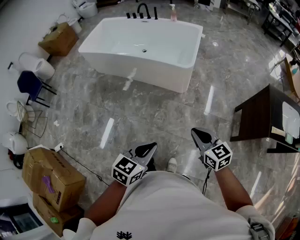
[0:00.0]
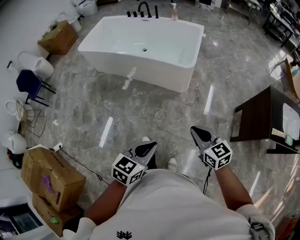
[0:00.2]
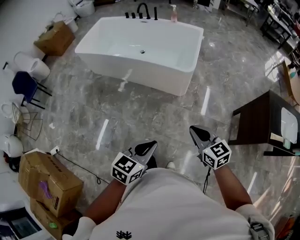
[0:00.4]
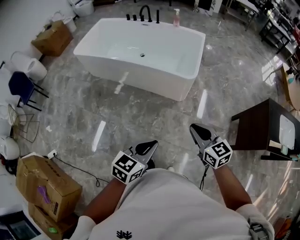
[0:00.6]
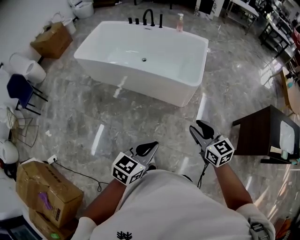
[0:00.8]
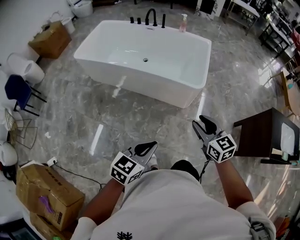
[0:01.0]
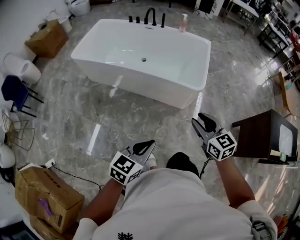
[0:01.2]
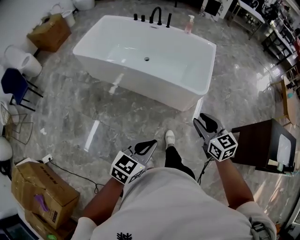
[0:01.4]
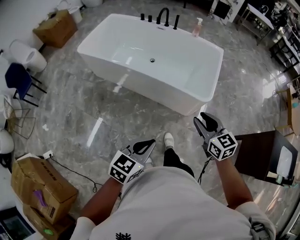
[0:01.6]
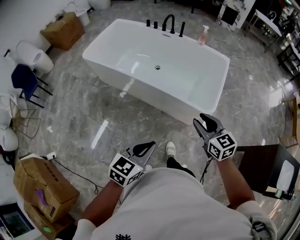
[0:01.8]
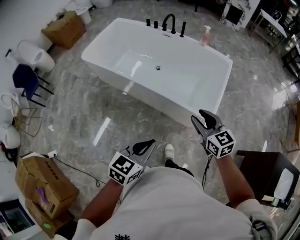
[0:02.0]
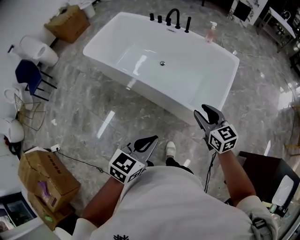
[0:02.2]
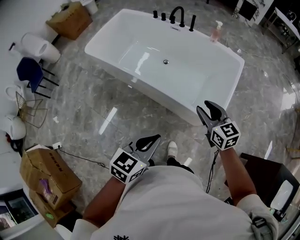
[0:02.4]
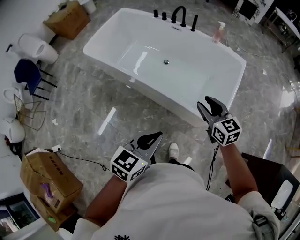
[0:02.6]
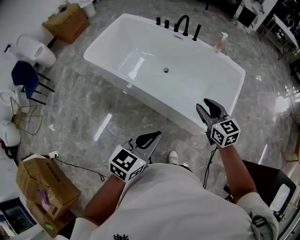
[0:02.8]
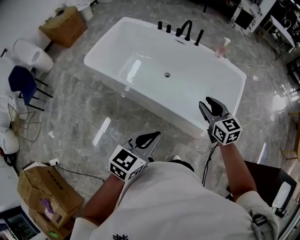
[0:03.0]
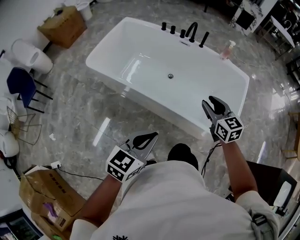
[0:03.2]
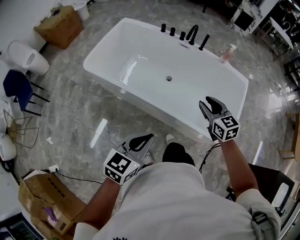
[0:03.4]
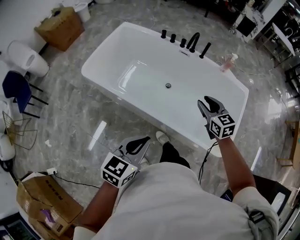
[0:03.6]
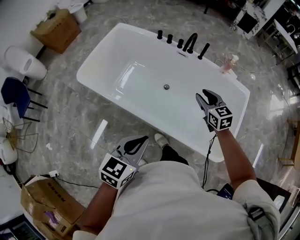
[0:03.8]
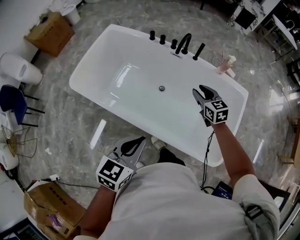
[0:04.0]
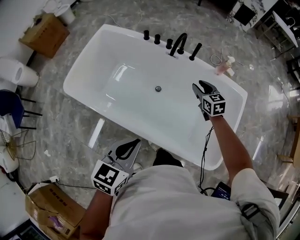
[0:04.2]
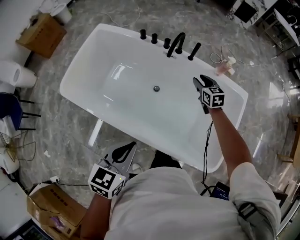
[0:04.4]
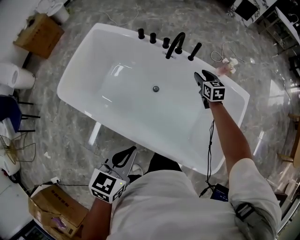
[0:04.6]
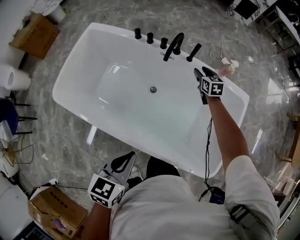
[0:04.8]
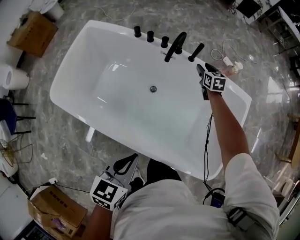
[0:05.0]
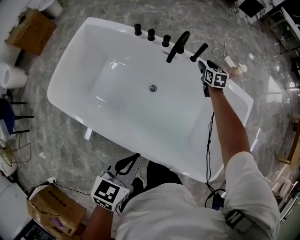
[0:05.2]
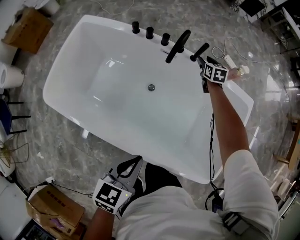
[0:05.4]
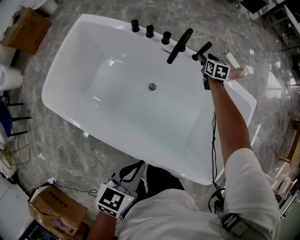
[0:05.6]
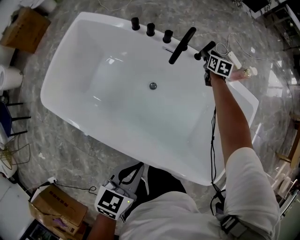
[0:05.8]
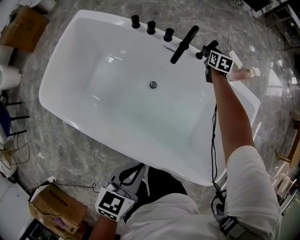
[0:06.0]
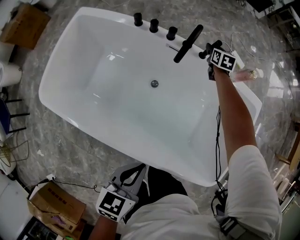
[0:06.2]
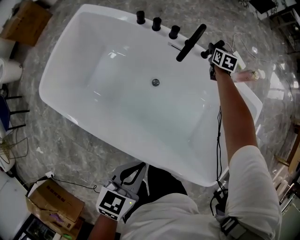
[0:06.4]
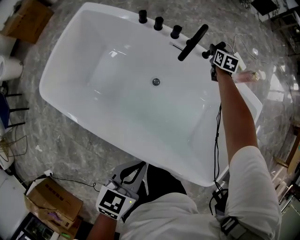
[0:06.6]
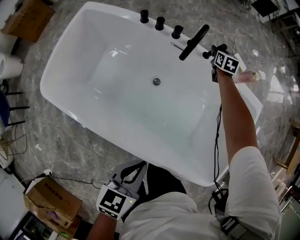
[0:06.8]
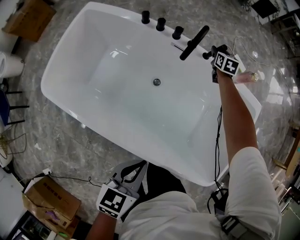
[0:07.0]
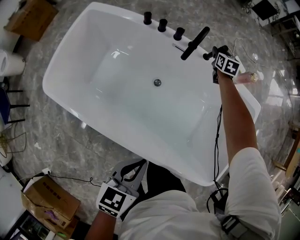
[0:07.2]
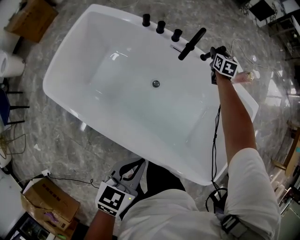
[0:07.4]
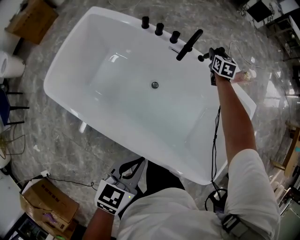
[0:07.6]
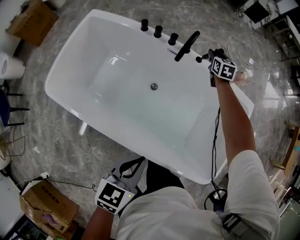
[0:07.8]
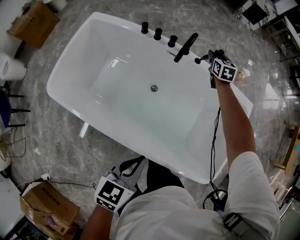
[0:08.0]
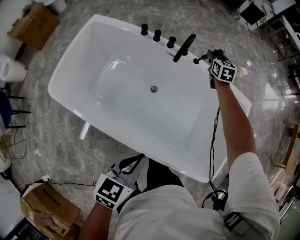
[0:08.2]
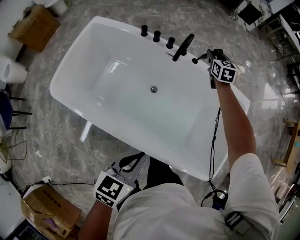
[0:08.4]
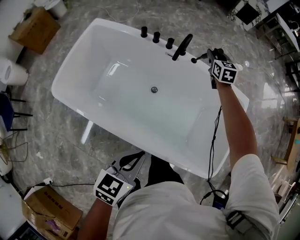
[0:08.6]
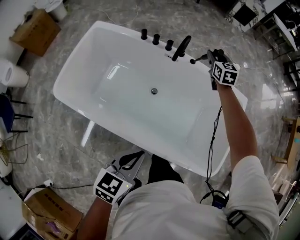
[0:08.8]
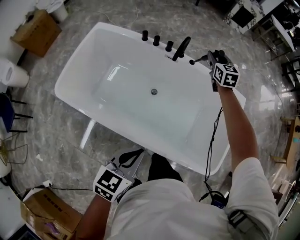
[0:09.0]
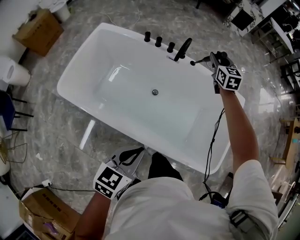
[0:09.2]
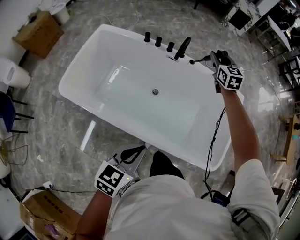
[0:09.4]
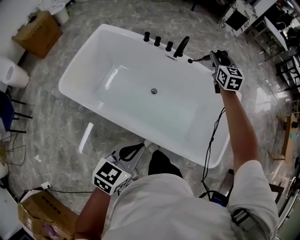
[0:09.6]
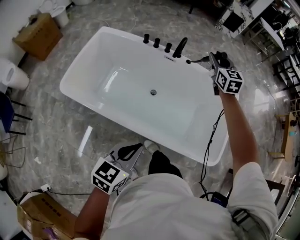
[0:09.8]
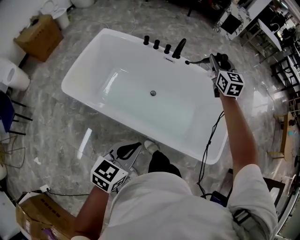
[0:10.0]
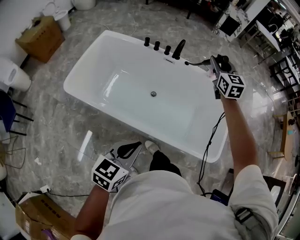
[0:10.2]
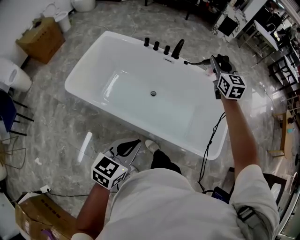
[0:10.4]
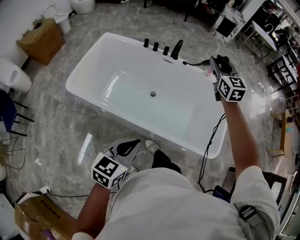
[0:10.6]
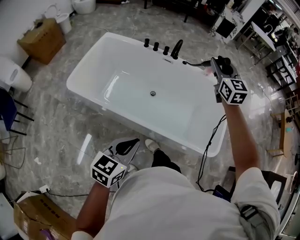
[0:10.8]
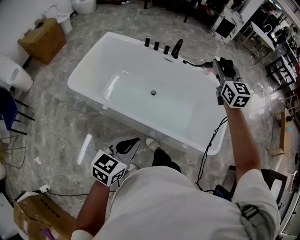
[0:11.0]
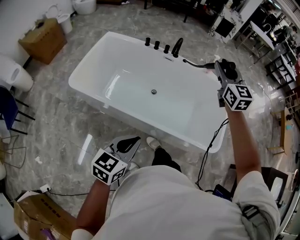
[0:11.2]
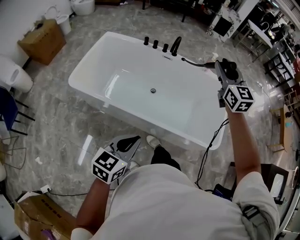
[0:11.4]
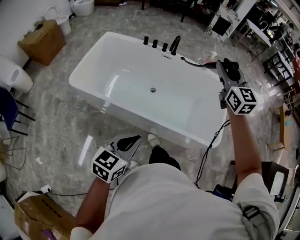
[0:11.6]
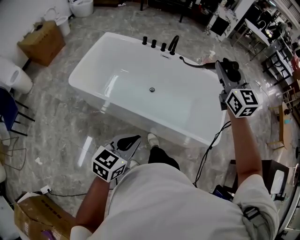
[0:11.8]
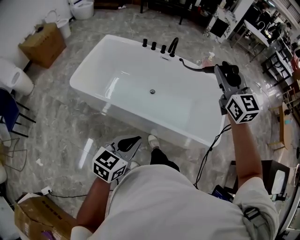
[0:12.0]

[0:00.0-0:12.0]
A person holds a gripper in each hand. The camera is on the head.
0:00.0 to 0:01.6: The two grippers go roughly 40 cm forward and to the left. The right gripper opens its fingers.
0:01.6 to 0:03.0: The grippers both shift forward by roughly 35 cm.
0:03.0 to 0:04.4: The two grippers go roughly 40 cm forward.
0:04.4 to 0:06.0: The right gripper travels forward and downward by roughly 35 cm, and turns by approximately 20 degrees. The left gripper travels downward and forward by some 15 cm.
0:06.0 to 0:07.6: The right gripper goes about 10 cm upward.
0:07.6 to 0:09.0: The left gripper heads backward and upward, covering roughly 10 cm, while the right gripper travels upward and backward by about 25 cm.
0:09.0 to 0:10.4: The right gripper is displaced backward and upward by some 30 cm; the left gripper moves backward, some 15 cm.
0:10.4 to 0:12.0: The right gripper moves backward and upward, roughly 30 cm. Meanwhile the left gripper moves backward, roughly 10 cm.

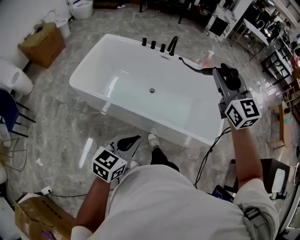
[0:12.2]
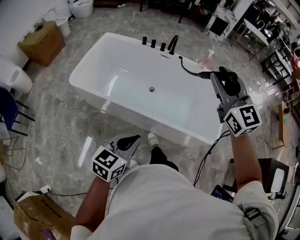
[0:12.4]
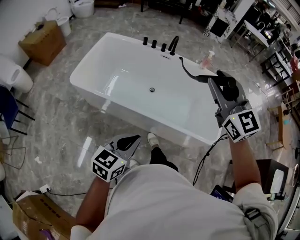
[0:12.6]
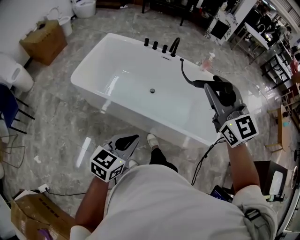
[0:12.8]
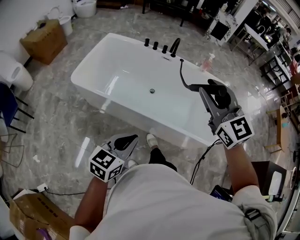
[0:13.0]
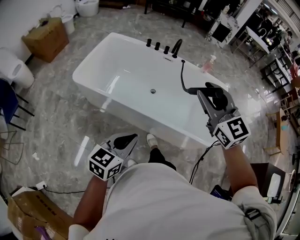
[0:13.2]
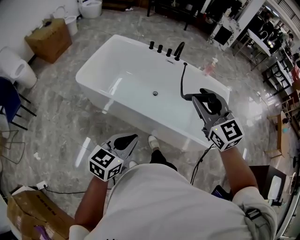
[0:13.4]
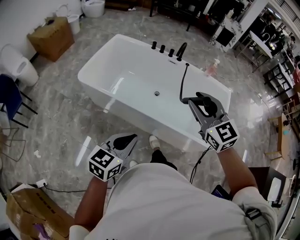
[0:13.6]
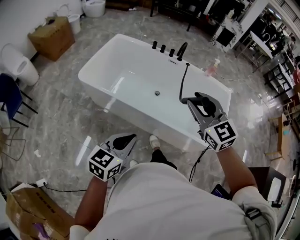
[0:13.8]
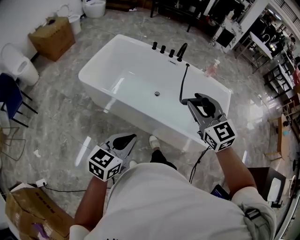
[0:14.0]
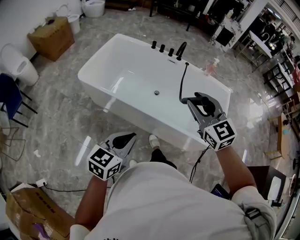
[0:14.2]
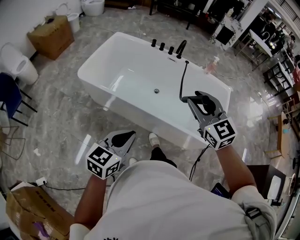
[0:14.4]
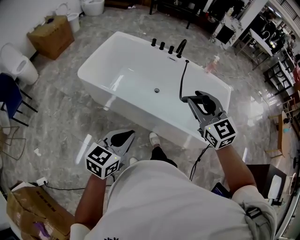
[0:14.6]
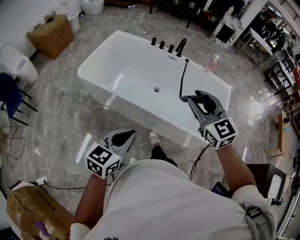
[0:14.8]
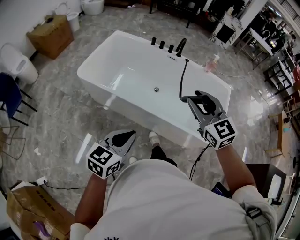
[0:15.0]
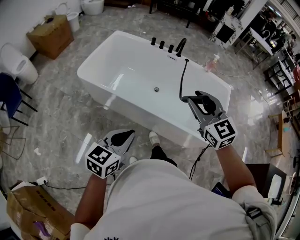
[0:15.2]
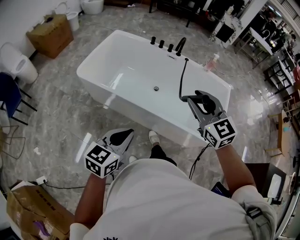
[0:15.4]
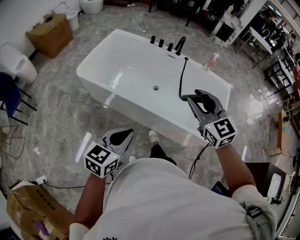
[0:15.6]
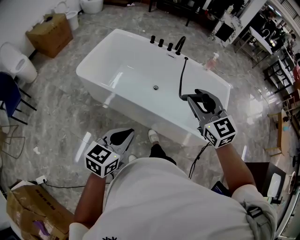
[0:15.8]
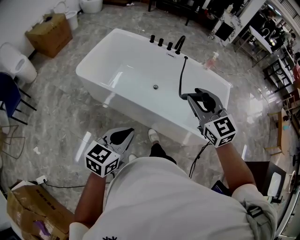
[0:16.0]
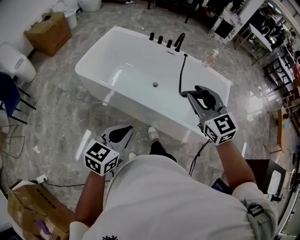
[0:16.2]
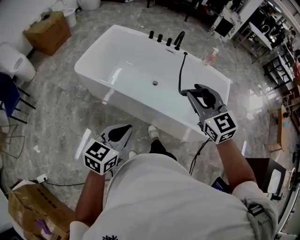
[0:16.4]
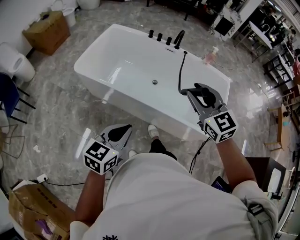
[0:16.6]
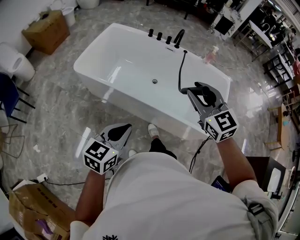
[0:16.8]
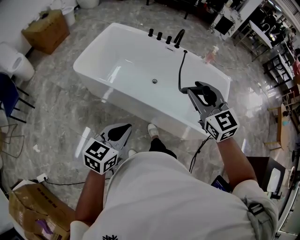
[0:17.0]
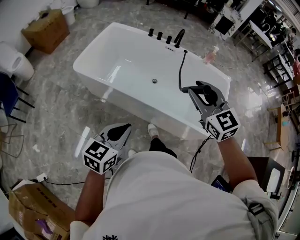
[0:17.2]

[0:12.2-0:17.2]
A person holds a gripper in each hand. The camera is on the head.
0:12.2 to 0:13.8: The left gripper moves approximately 5 cm. Meanwhile the right gripper travels backward, to the left and downward by roughly 20 cm.
0:13.8 to 0:17.2: The grippers move only a little.

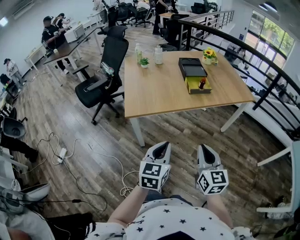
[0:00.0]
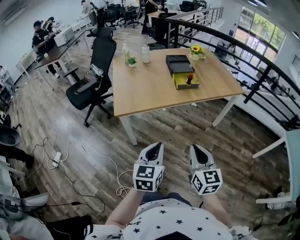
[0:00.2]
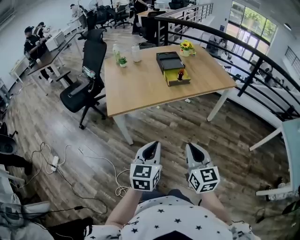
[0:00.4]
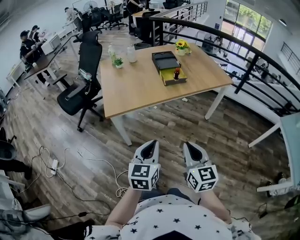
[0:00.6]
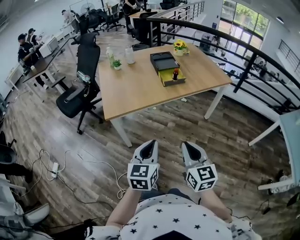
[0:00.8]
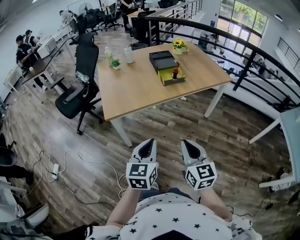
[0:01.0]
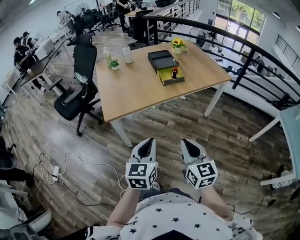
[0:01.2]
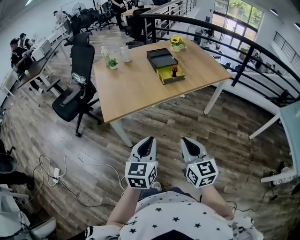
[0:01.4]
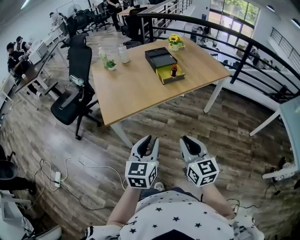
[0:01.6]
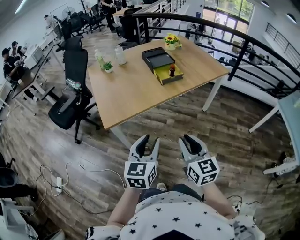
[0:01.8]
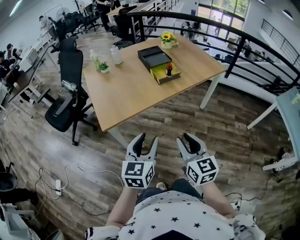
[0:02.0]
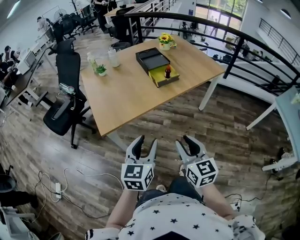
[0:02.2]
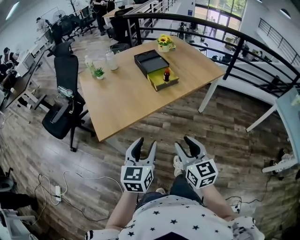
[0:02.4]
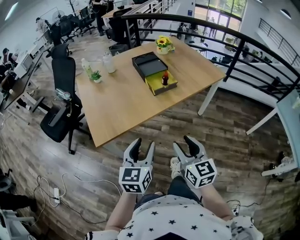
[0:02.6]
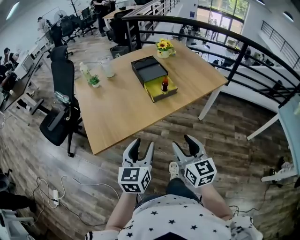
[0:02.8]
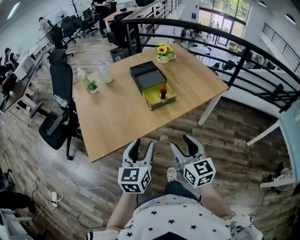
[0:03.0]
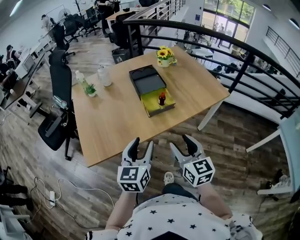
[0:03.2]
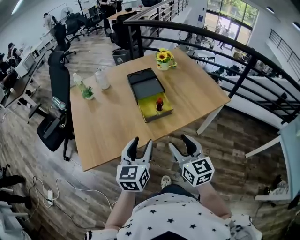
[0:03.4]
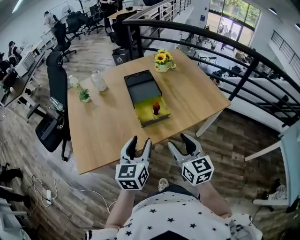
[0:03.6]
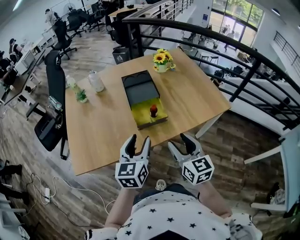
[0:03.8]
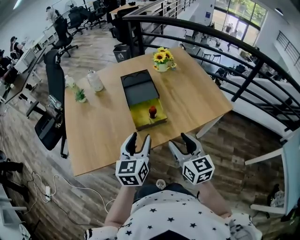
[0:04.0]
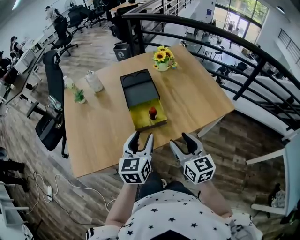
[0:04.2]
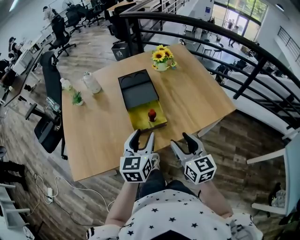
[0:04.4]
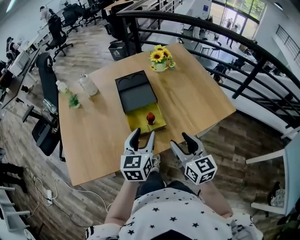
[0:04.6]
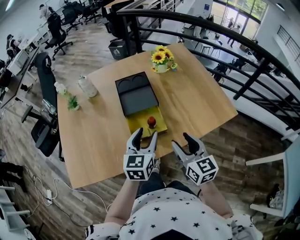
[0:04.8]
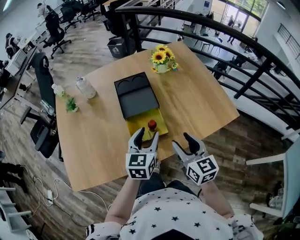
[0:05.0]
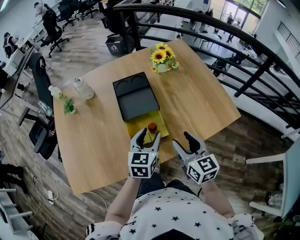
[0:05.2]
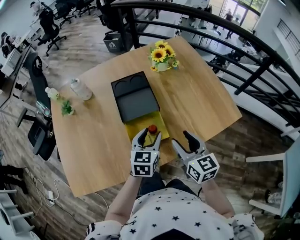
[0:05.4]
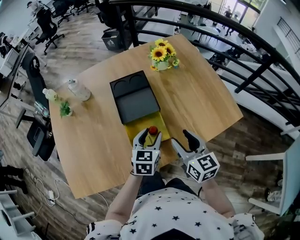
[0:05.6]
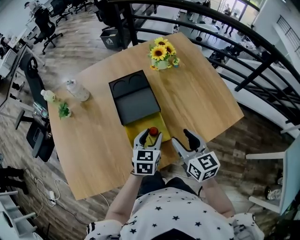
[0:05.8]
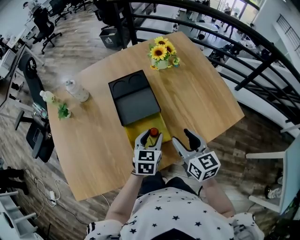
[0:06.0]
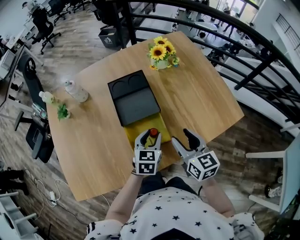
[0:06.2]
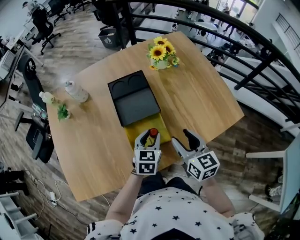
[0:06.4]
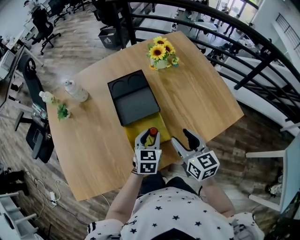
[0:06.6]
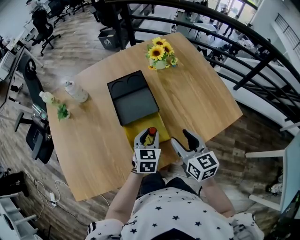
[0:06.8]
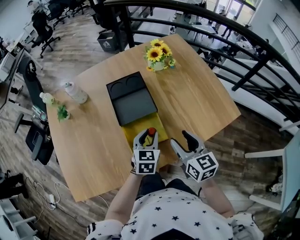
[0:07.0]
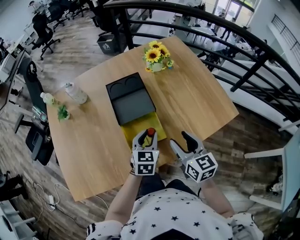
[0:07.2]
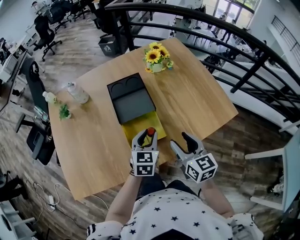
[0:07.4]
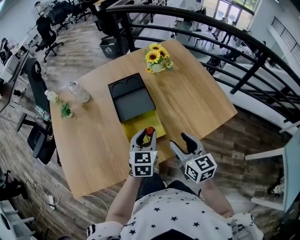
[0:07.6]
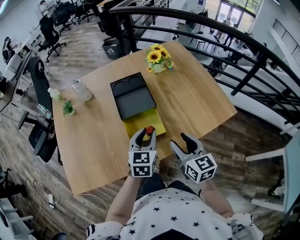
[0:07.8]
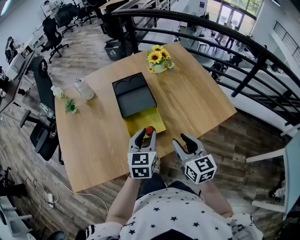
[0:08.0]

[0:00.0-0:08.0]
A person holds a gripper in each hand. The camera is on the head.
0:00.0 to 0:01.6: The grippers make only small movements.
0:01.6 to 0:03.2: The two grippers go about 25 cm forward. The left gripper opens. The right gripper opens up.
0:03.2 to 0:04.8: The two grippers go approximately 25 cm forward and to the right.
0:04.8 to 0:06.4: The left gripper heads downward and forward, covering approximately 15 cm. Meanwhile the right gripper is displaced forward by some 10 cm.
0:06.4 to 0:08.0: The left gripper travels upward and backward by approximately 10 cm. Meanwhile the right gripper moves backward, roughly 10 cm.
